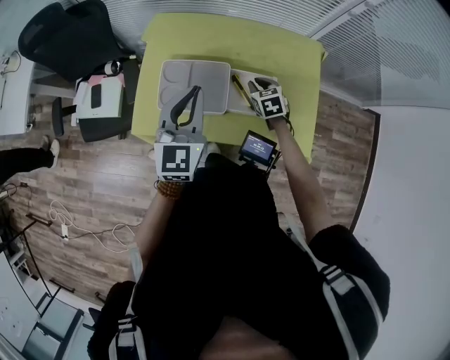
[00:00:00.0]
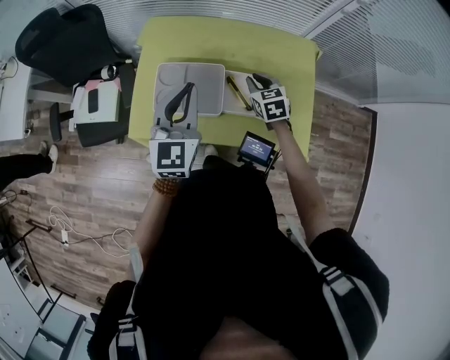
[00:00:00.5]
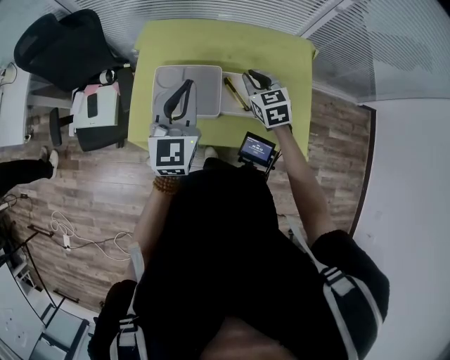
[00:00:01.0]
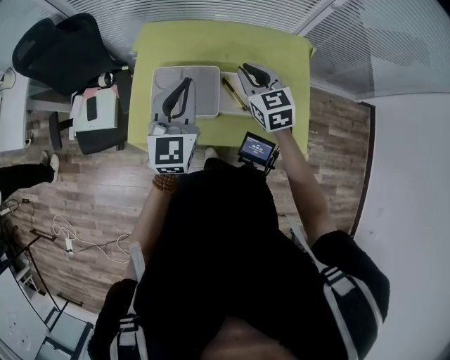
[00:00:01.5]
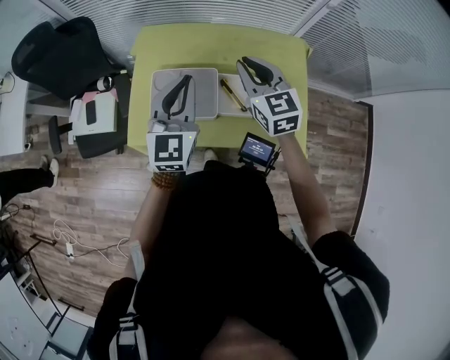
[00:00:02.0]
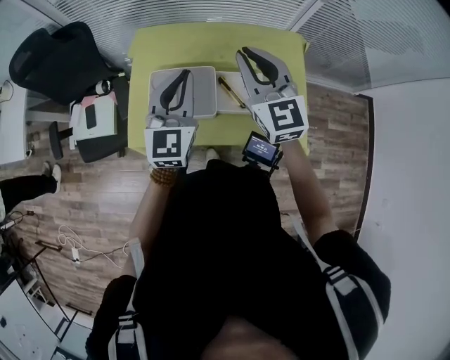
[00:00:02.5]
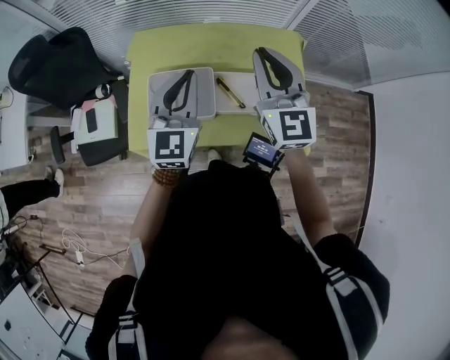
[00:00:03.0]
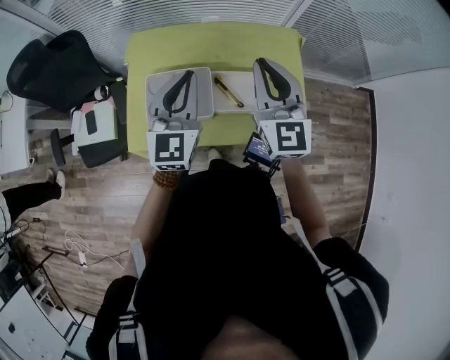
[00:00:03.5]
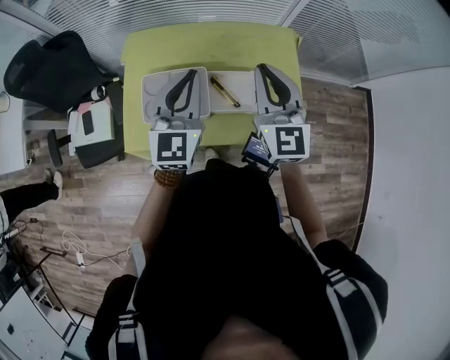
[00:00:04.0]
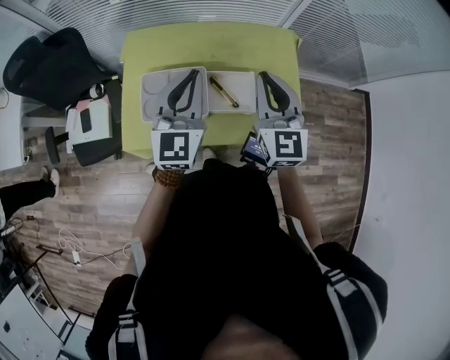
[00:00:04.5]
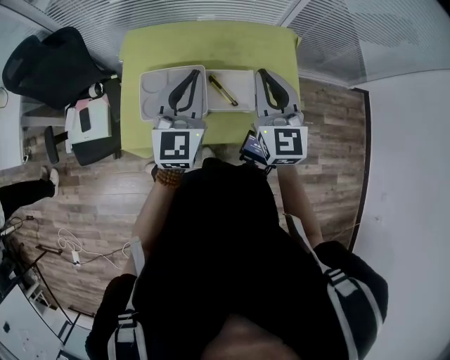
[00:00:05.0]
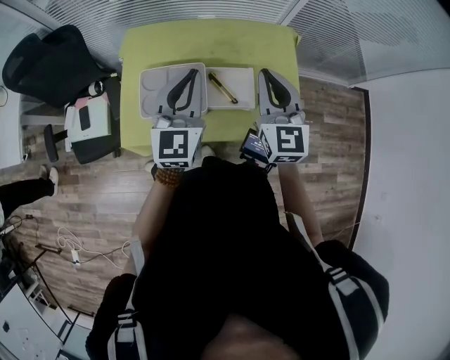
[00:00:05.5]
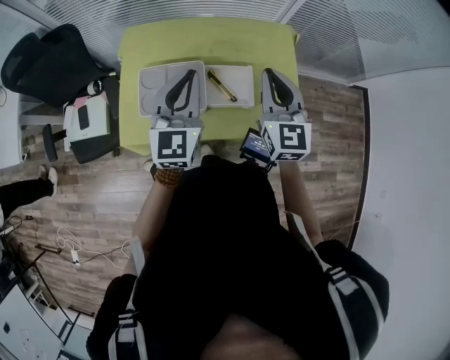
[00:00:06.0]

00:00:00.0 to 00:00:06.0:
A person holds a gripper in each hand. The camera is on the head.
00:00:00.0 to 00:00:02.0: The right gripper heads upward, covering roughly 25 cm, and angles its fingers upward, by some 30 degrees.
00:00:02.0 to 00:00:04.0: The right gripper shifts some 10 cm upward, to the right and backward, and turns by about 20 degrees; the left gripper shifts by roughly 5 cm.
00:00:04.0 to 00:00:06.0: There are only small adjustments of the grippers.

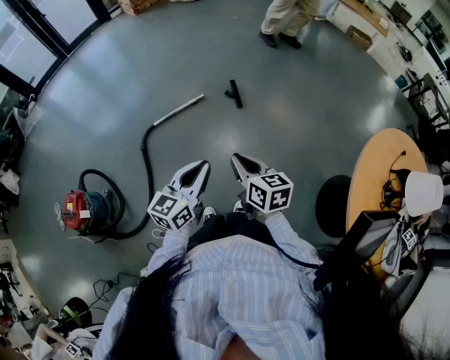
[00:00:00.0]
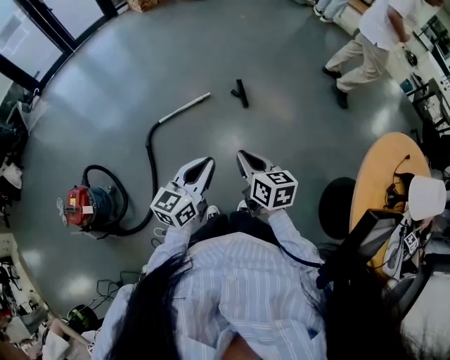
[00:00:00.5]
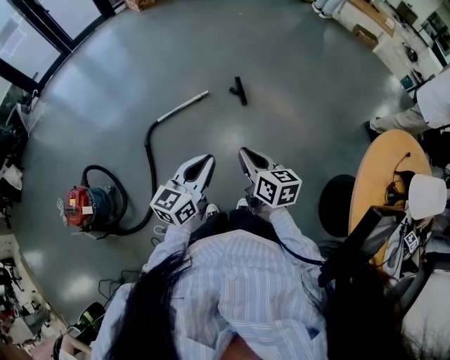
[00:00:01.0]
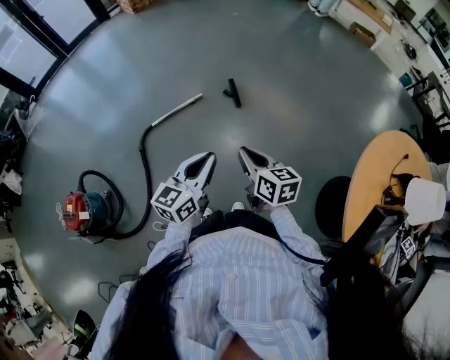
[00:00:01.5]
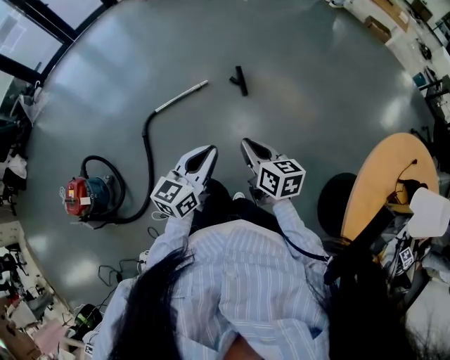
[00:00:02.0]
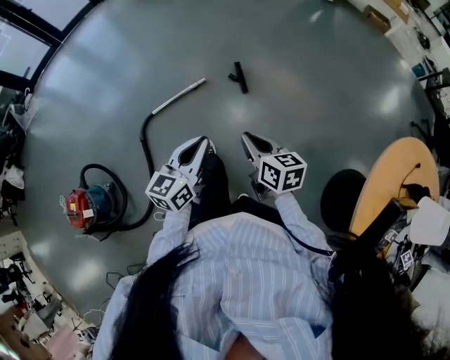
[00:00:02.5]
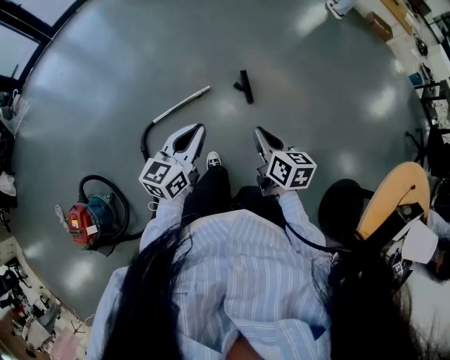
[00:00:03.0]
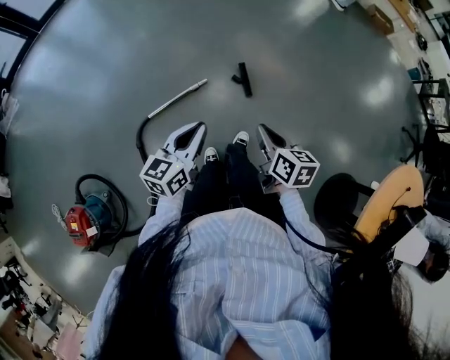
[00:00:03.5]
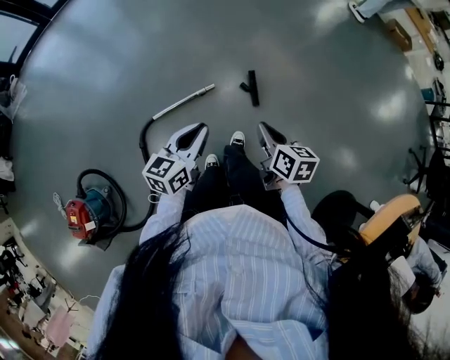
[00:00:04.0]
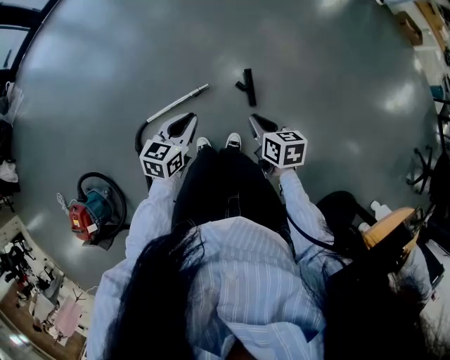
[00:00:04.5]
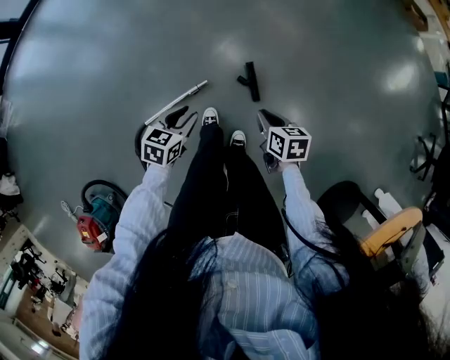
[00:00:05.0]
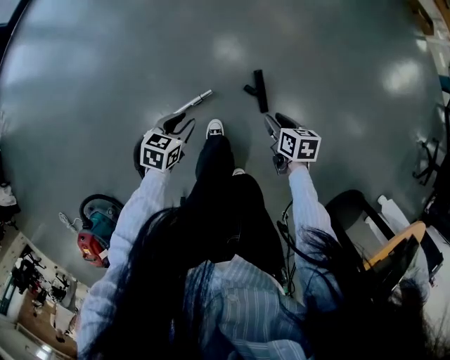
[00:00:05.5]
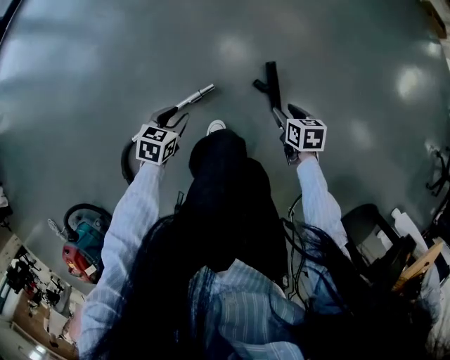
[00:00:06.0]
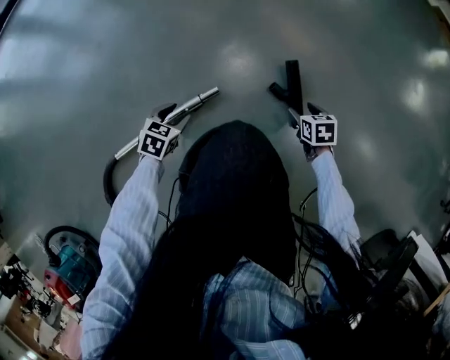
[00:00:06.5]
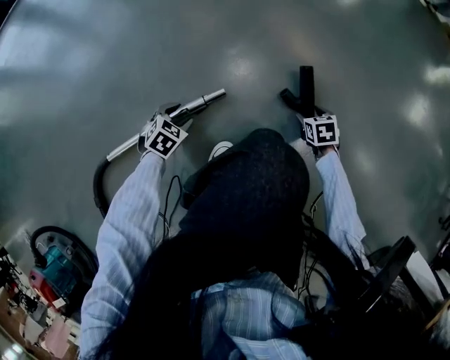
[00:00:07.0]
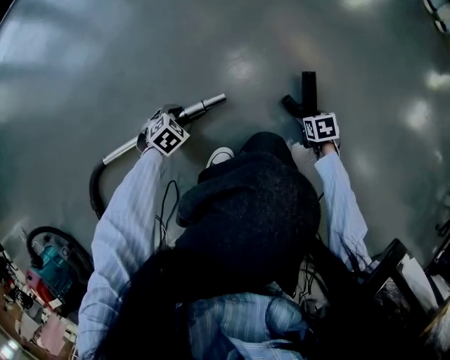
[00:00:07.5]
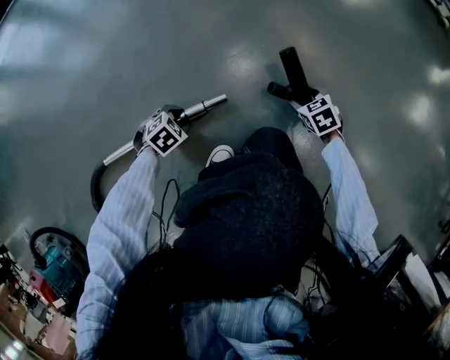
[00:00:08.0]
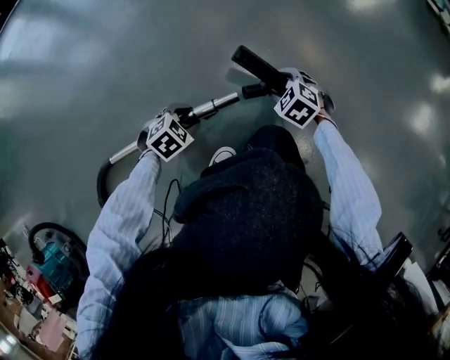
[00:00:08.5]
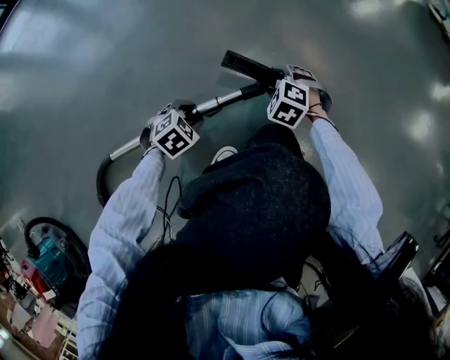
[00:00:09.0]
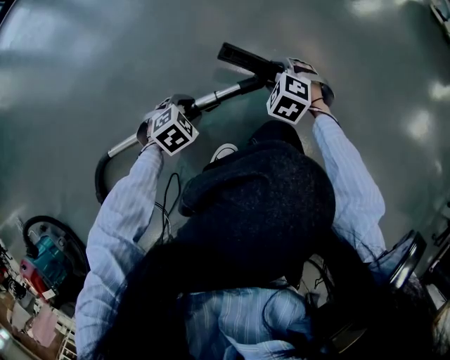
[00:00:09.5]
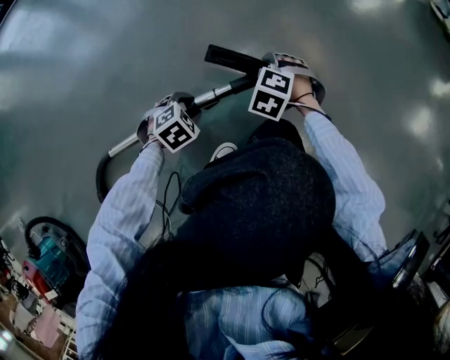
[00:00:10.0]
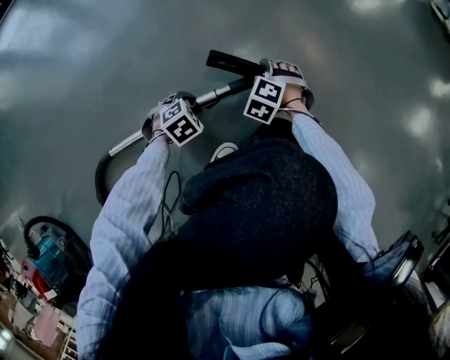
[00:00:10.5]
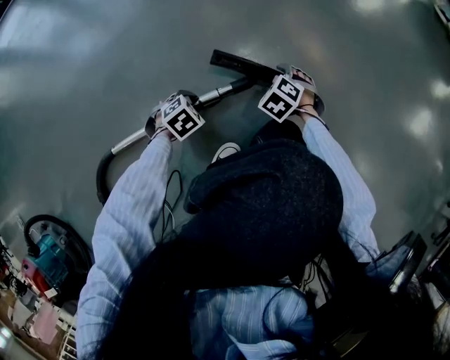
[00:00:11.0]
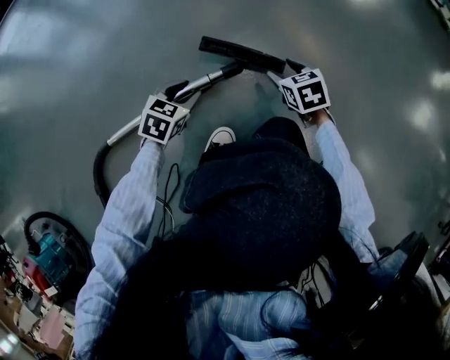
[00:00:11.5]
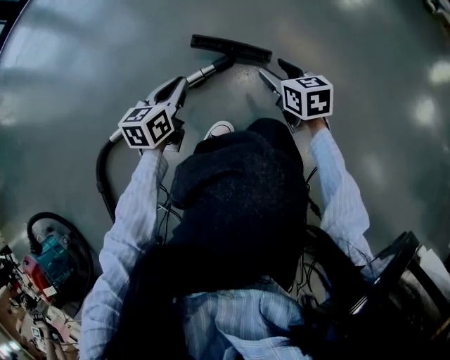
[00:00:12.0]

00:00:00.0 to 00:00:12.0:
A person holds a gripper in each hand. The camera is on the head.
00:00:00.0 to 00:00:02.0: Both grippers move to the right and forward, about 10 cm.
00:00:02.0 to 00:00:04.0: The two grippers travel together, forward, some 40 cm.
00:00:04.0 to 00:00:06.0: Both grippers travel together downward and forward, about 60 cm. The right gripper changes its angle by approximately 30 degrees, and opens; the left gripper angles its fingers downward, by roughly 30 degrees, and opens its fingers.
00:00:06.0 to 00:00:08.0: Both grippers move downward, about 35 cm. The left gripper swivels about 30 degrees. Meanwhile the right gripper twists approximately 40 degrees counterclockwise, seen from behind.
00:00:08.0 to 00:00:10.0: The right gripper heads to the left, covering about 15 cm, and twists some 50 degrees counterclockwise, seen from behind; the left gripper goes roughly 5 cm upward.
00:00:10.0 to 00:00:12.0: The left gripper moves upward, approximately 15 cm, tips its fingers upward by about 40 degrees, and closes its fingers, while the right gripper shifts by roughly 15 cm, and twists approximately 70 degrees clockwise, seen from behind.

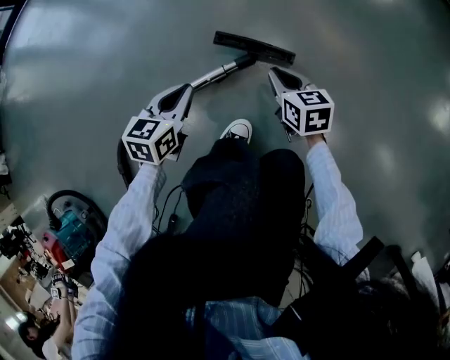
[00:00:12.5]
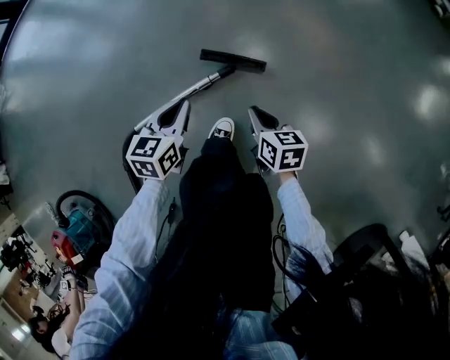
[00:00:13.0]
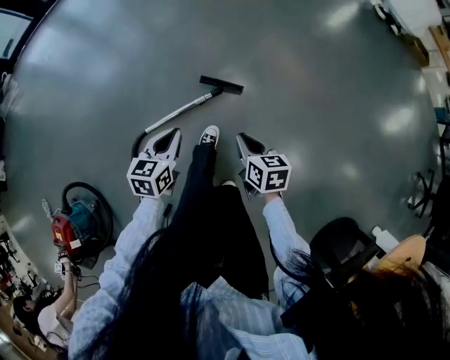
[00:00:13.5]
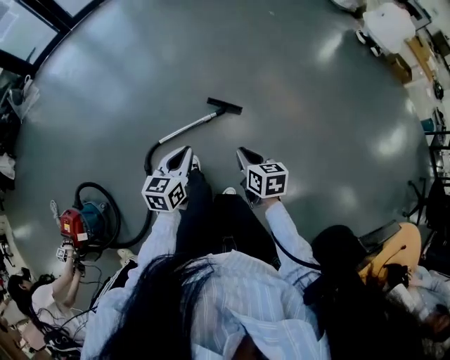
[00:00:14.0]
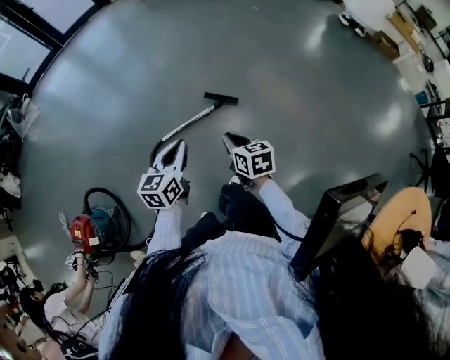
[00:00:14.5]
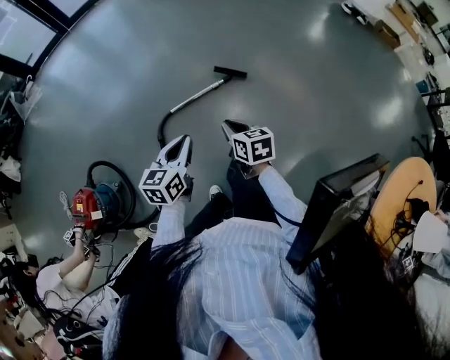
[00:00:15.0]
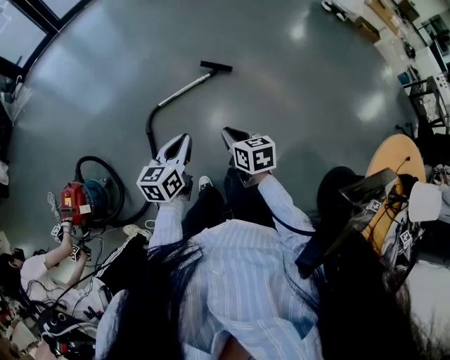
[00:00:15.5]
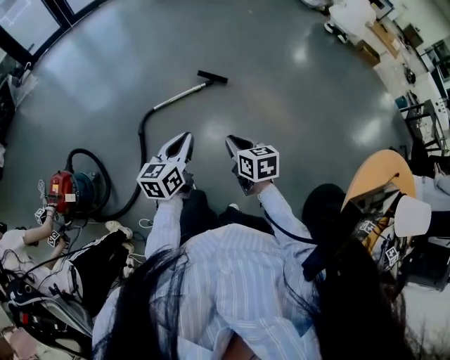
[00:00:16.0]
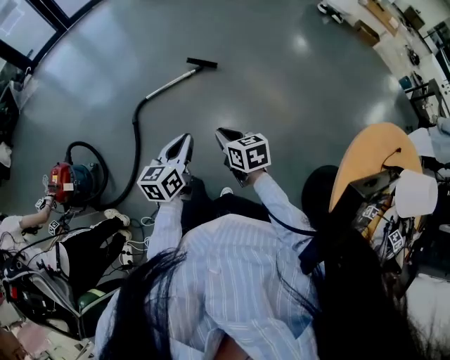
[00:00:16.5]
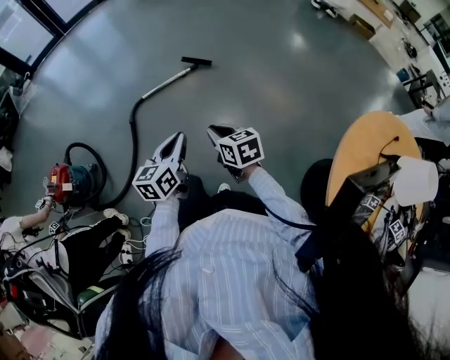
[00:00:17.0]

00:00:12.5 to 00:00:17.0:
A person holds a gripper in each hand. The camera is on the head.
00:00:12.5 to 00:00:14.5: Both grippers move upward and backward, roughly 70 cm.
00:00:14.5 to 00:00:17.0: The pair of grippers is taken backward, roughly 40 cm.

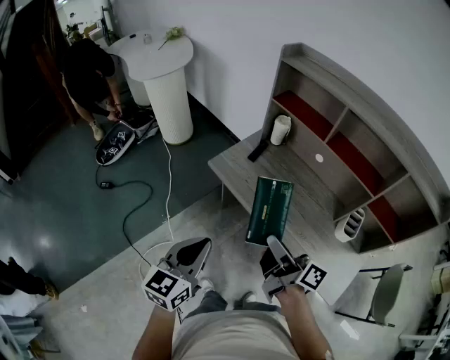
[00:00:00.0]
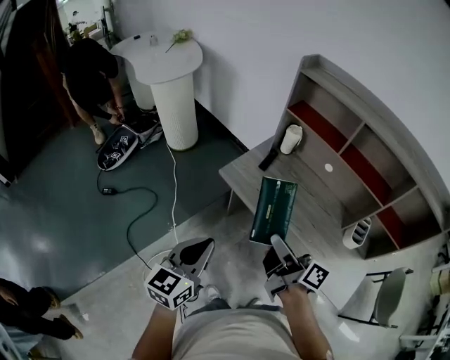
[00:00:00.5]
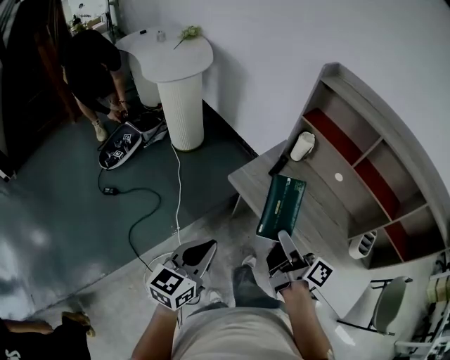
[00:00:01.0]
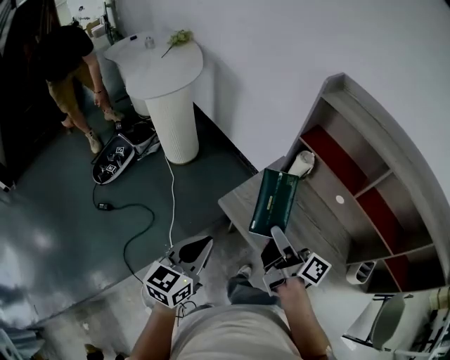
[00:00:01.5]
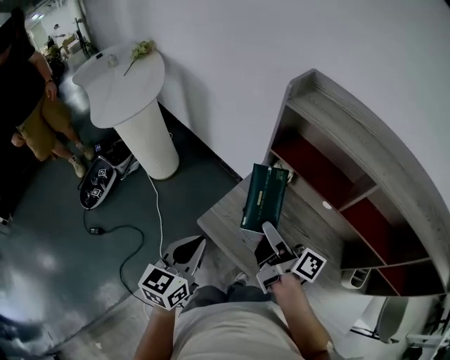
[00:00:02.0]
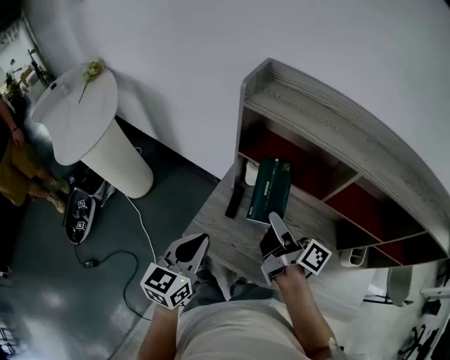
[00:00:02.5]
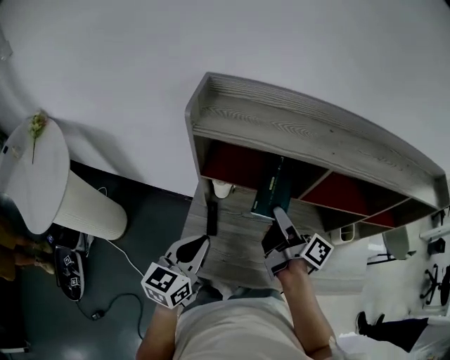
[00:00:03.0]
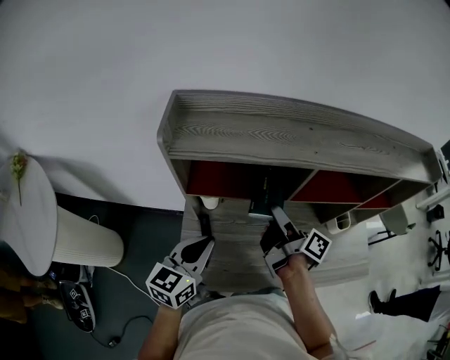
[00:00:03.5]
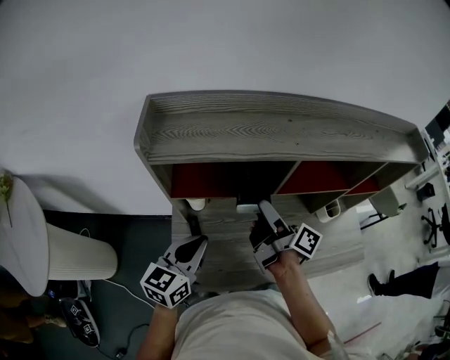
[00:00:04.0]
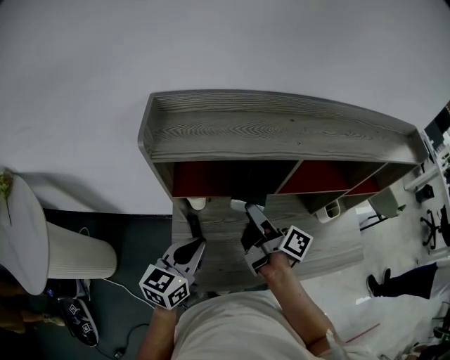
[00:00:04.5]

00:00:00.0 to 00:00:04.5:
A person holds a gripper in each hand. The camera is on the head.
00:00:00.0 to 00:00:02.0: Both grippers move forward, some 35 cm.
00:00:02.0 to 00:00:04.5: The right gripper ends up some 20 cm from where it was, and rotates about 50 degrees. The left gripper moves some 25 cm, and turns by some 50 degrees.
